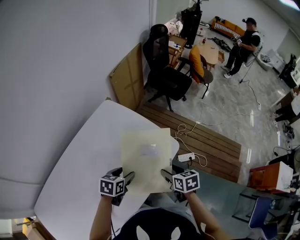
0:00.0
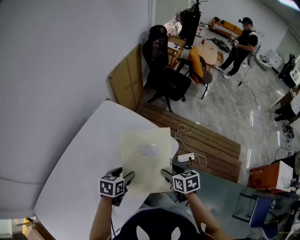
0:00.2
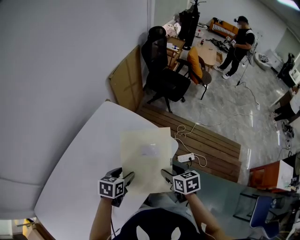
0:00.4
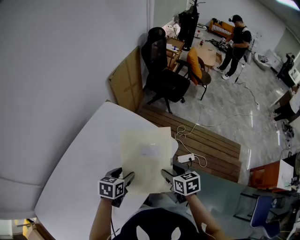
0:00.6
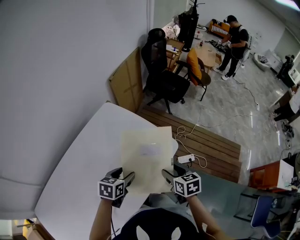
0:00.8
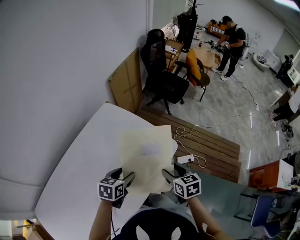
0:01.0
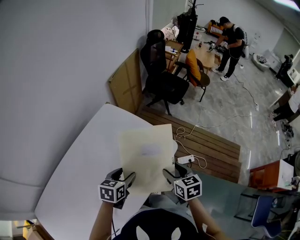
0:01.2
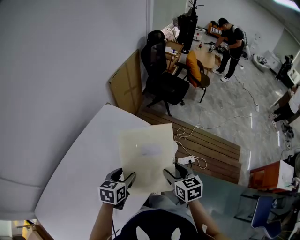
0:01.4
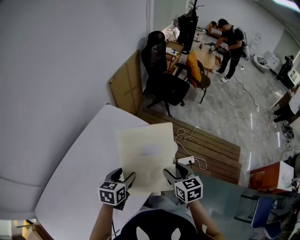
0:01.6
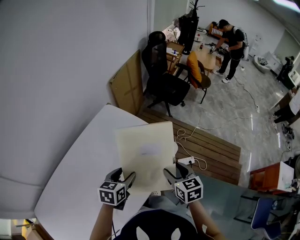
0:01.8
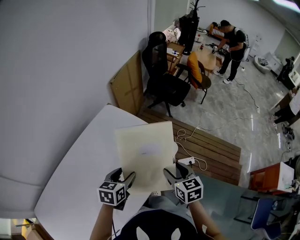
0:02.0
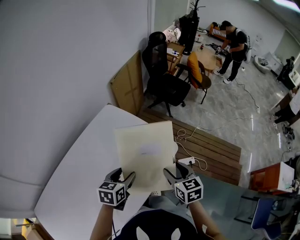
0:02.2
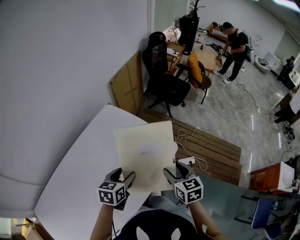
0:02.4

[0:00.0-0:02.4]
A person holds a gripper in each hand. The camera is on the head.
0:00.0 to 0:01.2: The right gripper travels upward by roughly 5 cm.
0:01.2 to 0:02.4: The grippers move only a little.

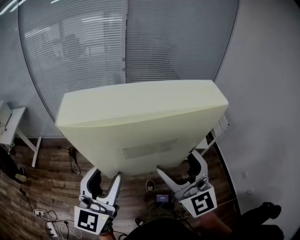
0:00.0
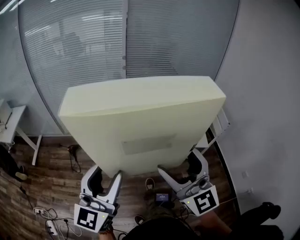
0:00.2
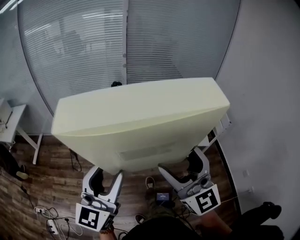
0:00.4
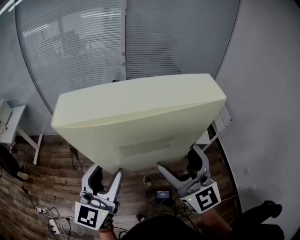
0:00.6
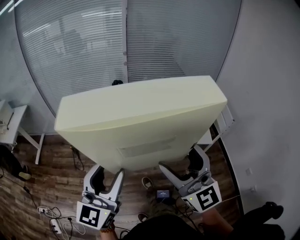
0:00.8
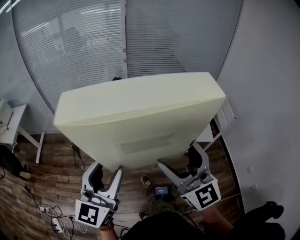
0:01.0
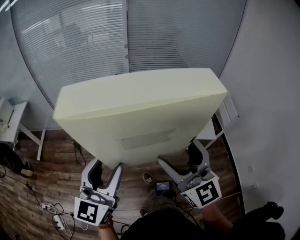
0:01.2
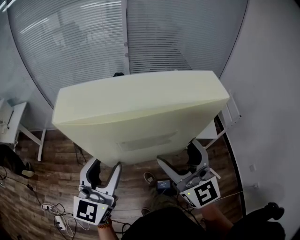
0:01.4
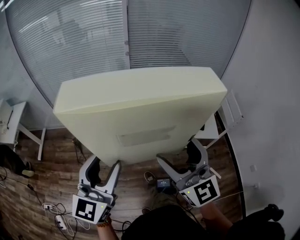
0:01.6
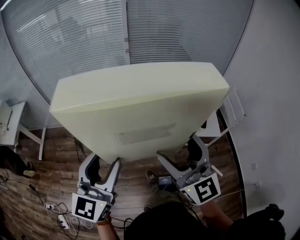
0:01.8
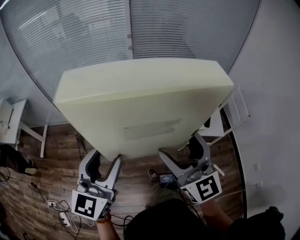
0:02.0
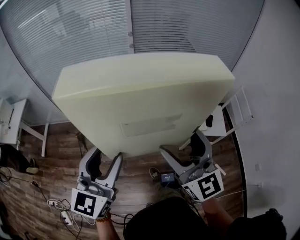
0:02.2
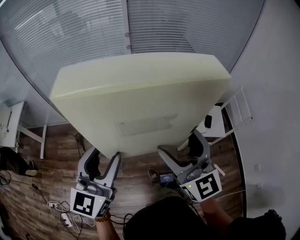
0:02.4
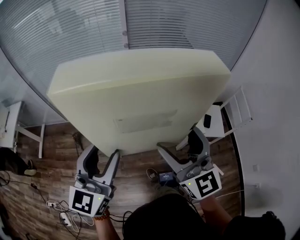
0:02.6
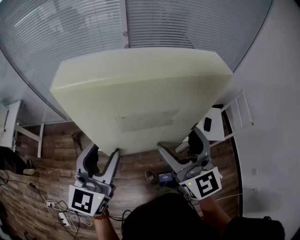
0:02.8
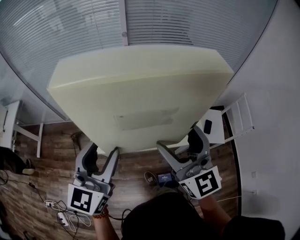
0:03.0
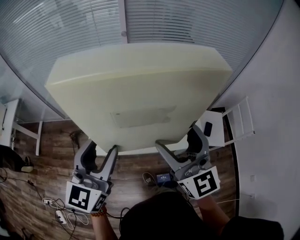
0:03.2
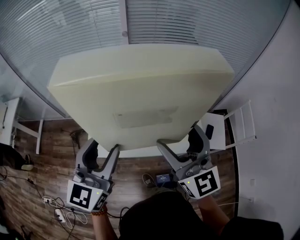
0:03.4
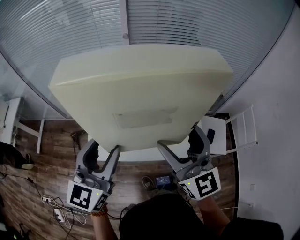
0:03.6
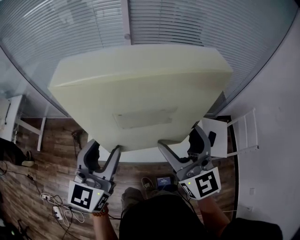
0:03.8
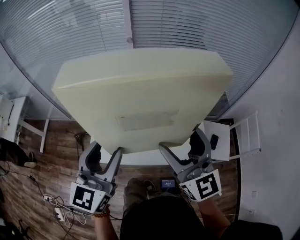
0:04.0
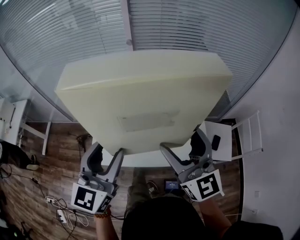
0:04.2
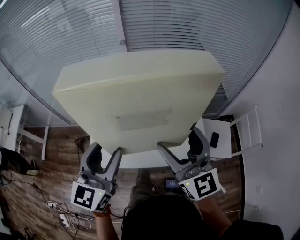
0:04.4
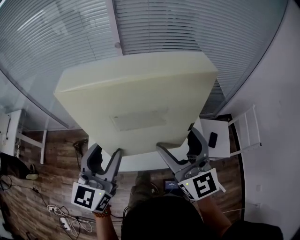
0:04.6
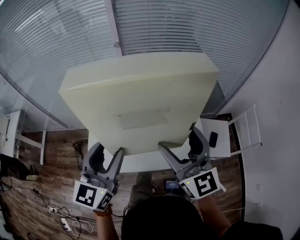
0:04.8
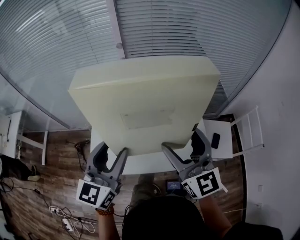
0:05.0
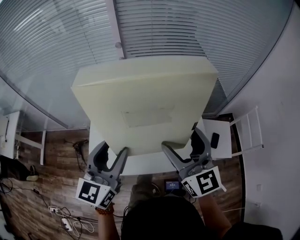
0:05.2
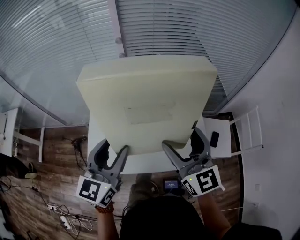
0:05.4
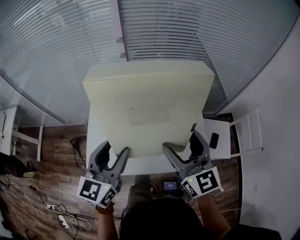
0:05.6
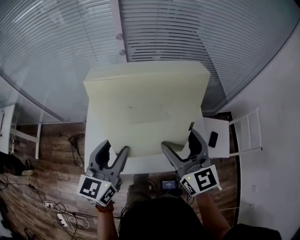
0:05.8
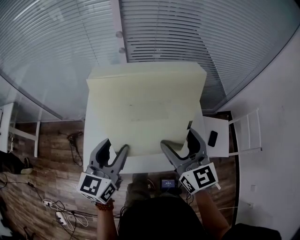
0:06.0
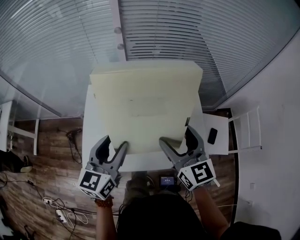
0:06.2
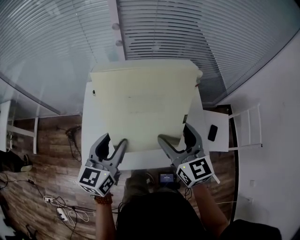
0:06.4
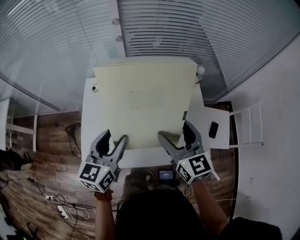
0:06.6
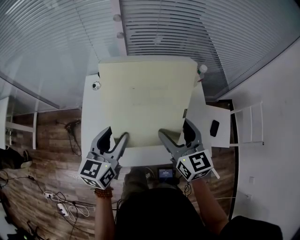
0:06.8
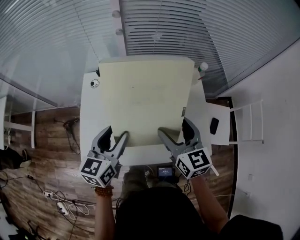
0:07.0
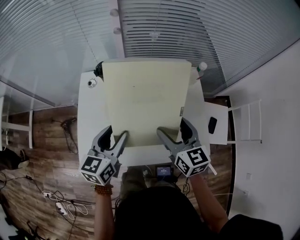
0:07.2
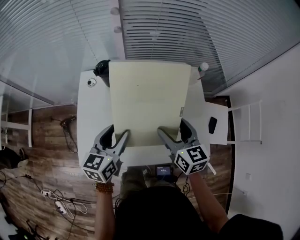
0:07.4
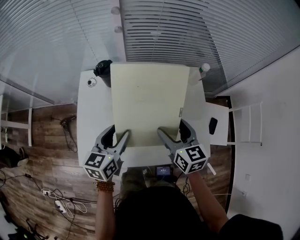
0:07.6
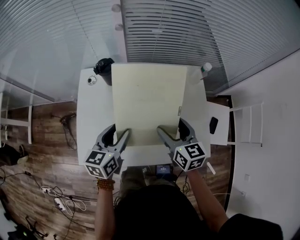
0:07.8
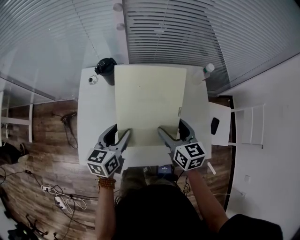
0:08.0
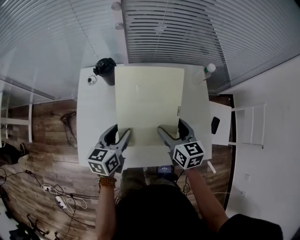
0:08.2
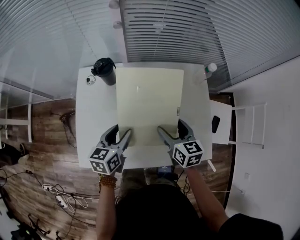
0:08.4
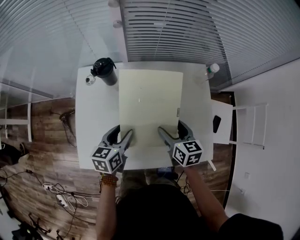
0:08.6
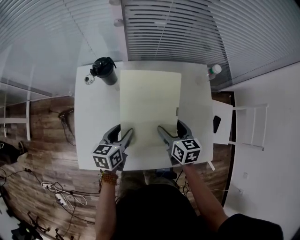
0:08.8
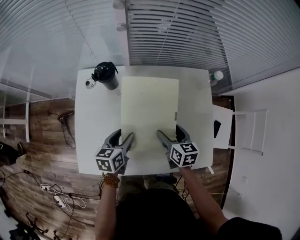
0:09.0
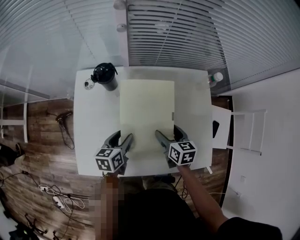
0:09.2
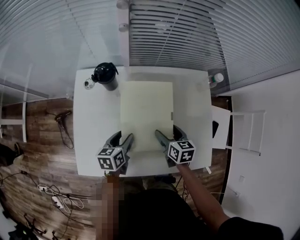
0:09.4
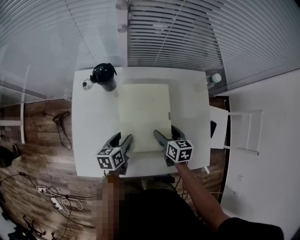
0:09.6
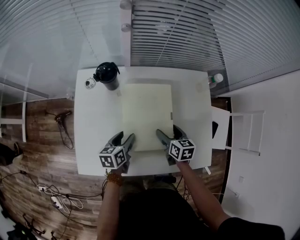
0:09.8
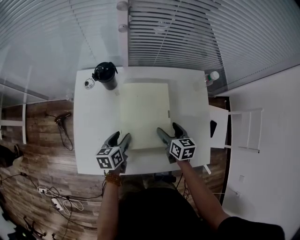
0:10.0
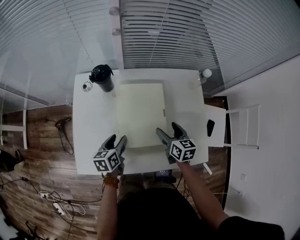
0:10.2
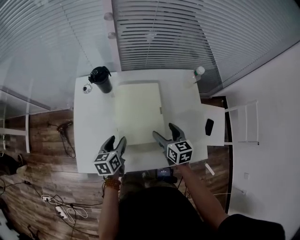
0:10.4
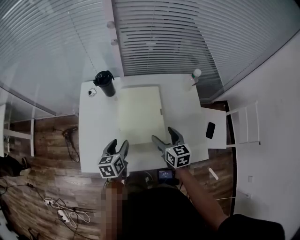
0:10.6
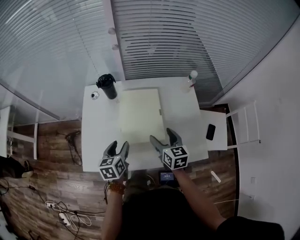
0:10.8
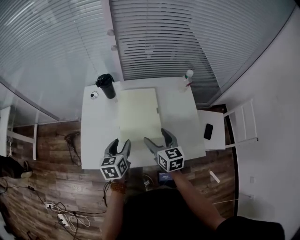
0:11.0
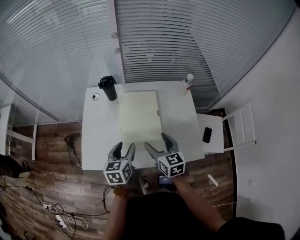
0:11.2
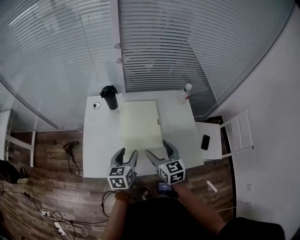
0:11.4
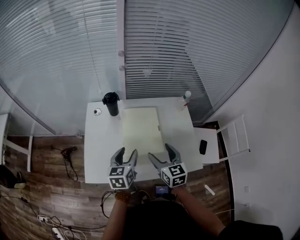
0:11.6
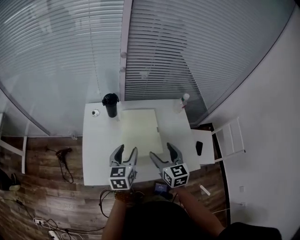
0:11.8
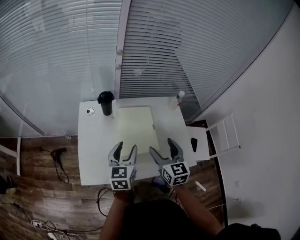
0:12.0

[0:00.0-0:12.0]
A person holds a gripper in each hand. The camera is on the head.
0:00.0 to 0:01.6: The two grippers go approximately 10 cm forward.
0:01.6 to 0:03.0: The grippers both shift forward by about 20 cm.
0:03.0 to 0:04.4: Both grippers move forward, some 10 cm.
0:04.4 to 0:06.0: The grippers both shift downward and forward by approximately 15 cm.
0:06.0 to 0:07.6: Both grippers travel together downward and forward, roughly 15 cm. The right gripper rotates approximately 20 degrees.
0:07.6 to 0:09.0: Both grippers move downward, approximately 15 cm.
0:09.0 to 0:10.4: The grippers move only a little.
0:10.4 to 0:12.0: The right gripper moves upward and backward, about 20 cm, and changes its angle by some 20 degrees. The left gripper travels upward by roughly 20 cm, and turns by approximately 30 degrees.

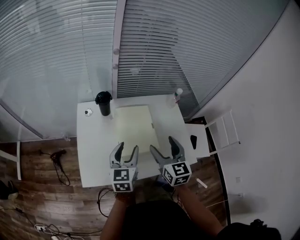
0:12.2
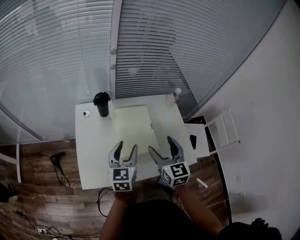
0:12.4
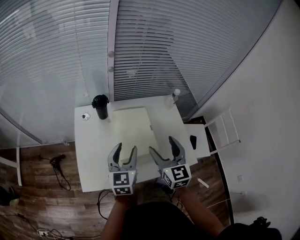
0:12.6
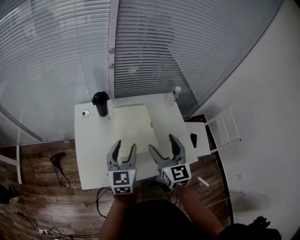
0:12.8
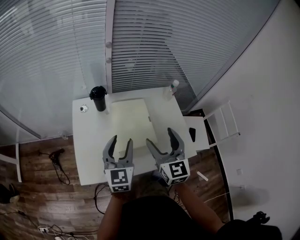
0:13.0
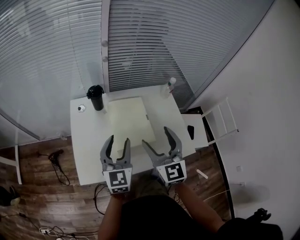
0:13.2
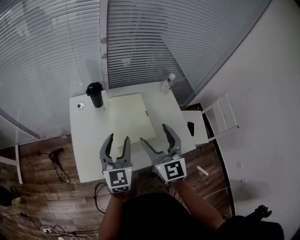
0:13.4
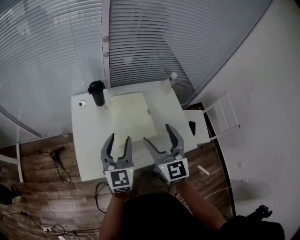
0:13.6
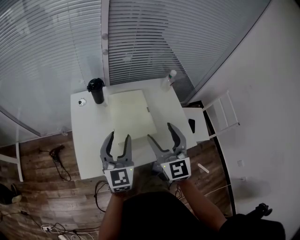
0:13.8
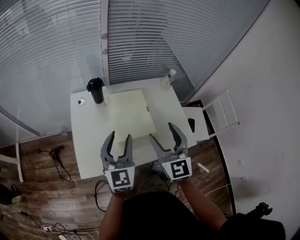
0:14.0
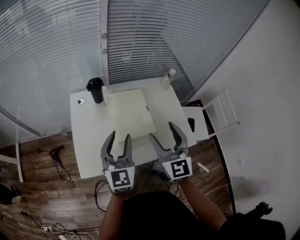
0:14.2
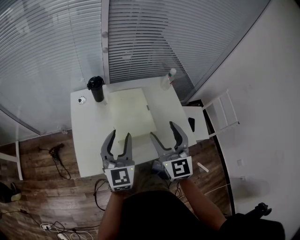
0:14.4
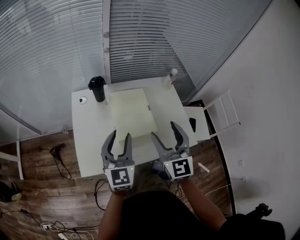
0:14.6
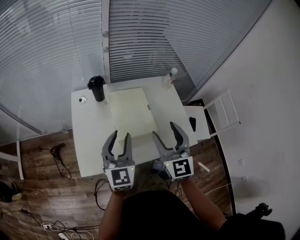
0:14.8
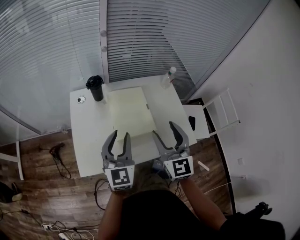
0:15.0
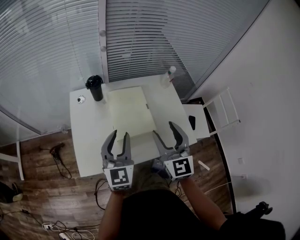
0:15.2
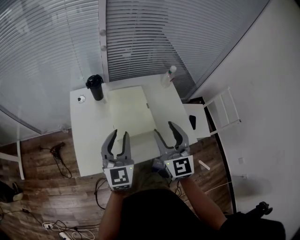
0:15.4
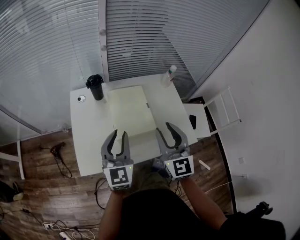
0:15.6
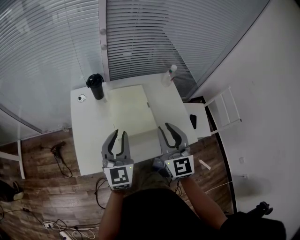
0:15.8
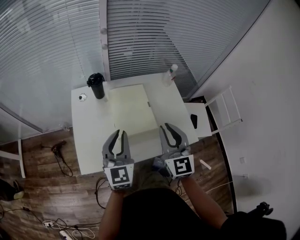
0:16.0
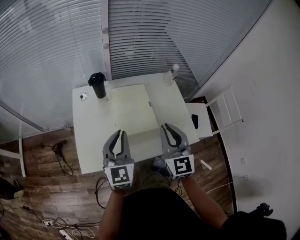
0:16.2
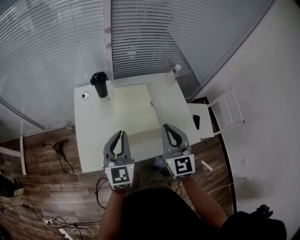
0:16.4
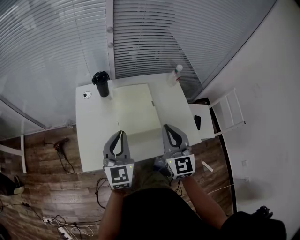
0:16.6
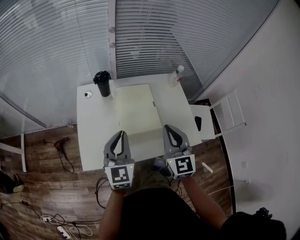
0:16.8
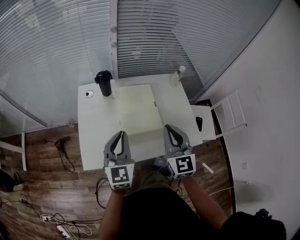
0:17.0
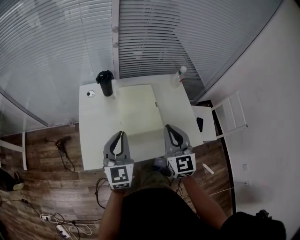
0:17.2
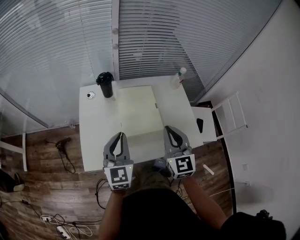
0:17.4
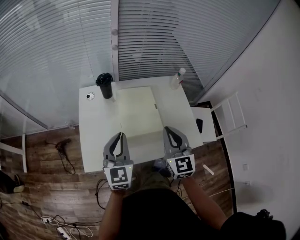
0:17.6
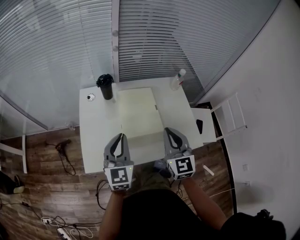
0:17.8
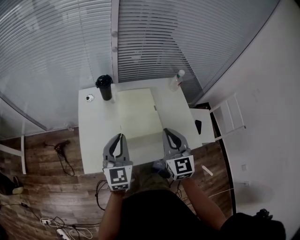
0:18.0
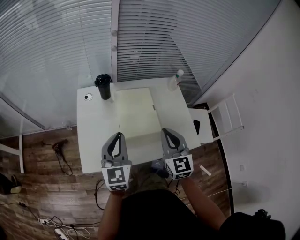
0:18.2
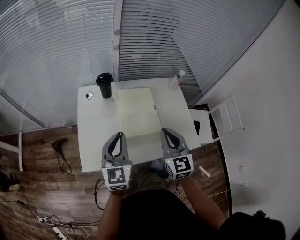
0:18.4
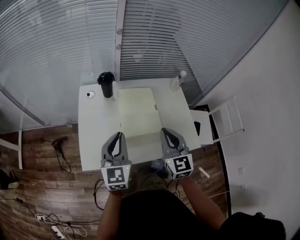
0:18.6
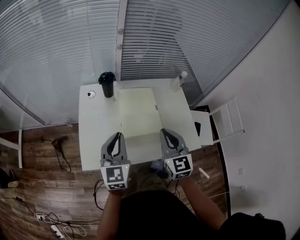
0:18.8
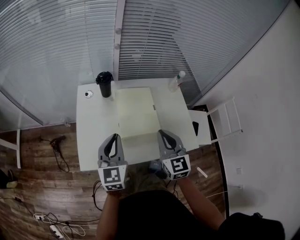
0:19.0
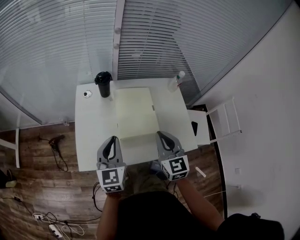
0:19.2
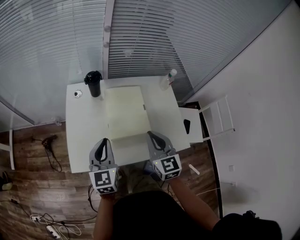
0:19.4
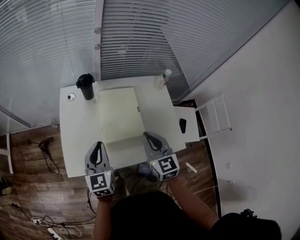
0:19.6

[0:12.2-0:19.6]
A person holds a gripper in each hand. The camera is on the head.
0:12.2 to 0:13.6: The right gripper ends up roughly 5 cm from where it was. Meanwhile the left gripper moves roughly 5 cm, and swivels approximately 20 degrees.
0:13.6 to 0:15.2: There are only small adjustments of the grippers.
0:15.2 to 0:16.6: The right gripper closes up; the left gripper closes its fingers.
0:16.6 to 0:18.2: The grippers stay close to where they were, moving slightly.
0:18.2 to 0:19.6: The left gripper changes place by some 5 cm.

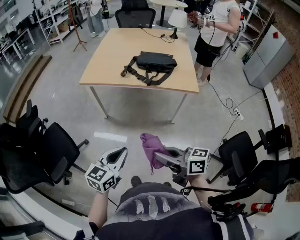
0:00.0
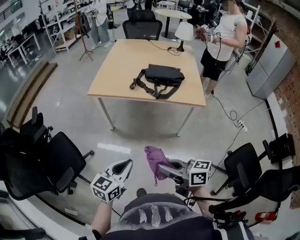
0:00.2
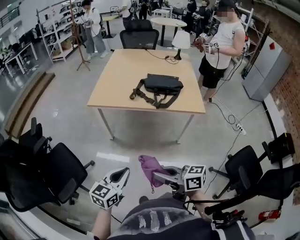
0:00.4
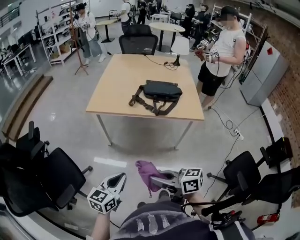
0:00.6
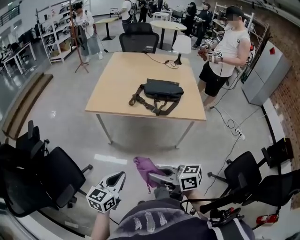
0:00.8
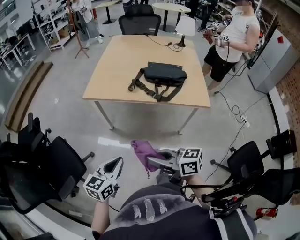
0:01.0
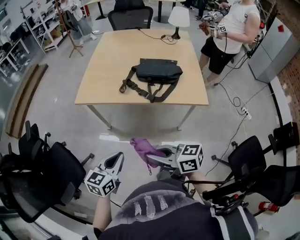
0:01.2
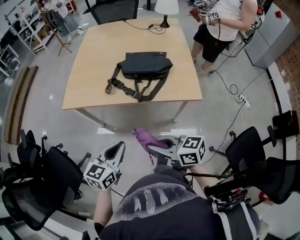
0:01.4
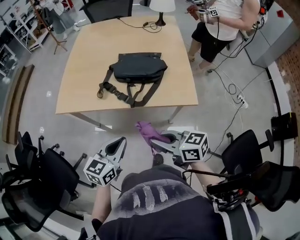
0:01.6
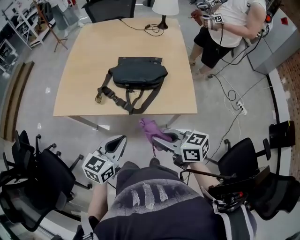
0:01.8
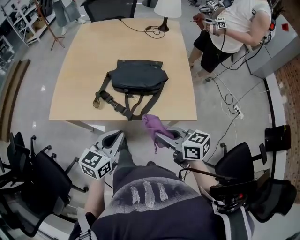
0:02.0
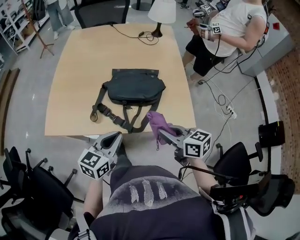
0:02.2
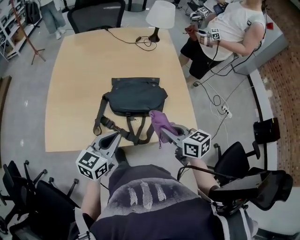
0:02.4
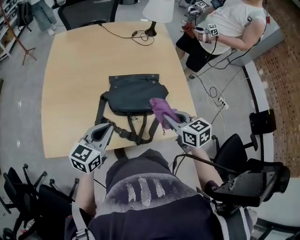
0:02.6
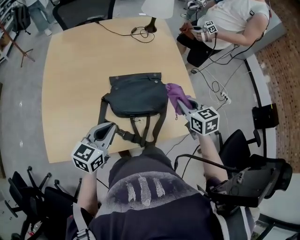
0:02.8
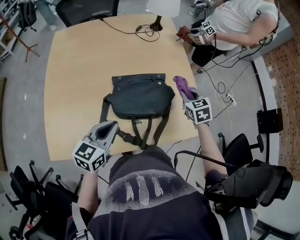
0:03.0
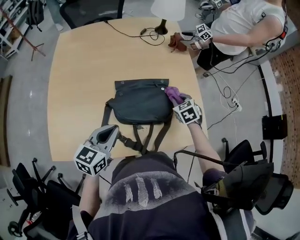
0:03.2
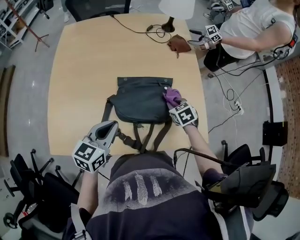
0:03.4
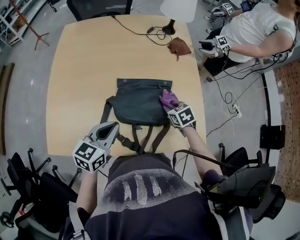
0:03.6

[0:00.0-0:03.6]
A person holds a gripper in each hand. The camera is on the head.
0:00.0 to 0:01.8: Both grippers travel together forward and to the right, approximately 35 cm.
0:01.8 to 0:03.6: The right gripper shifts by approximately 40 cm, and tilts its fingers about 40 degrees downward. The left gripper moves approximately 35 cm.
